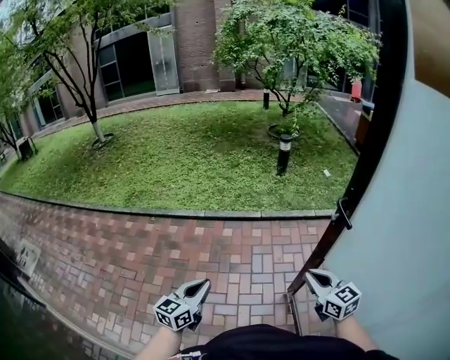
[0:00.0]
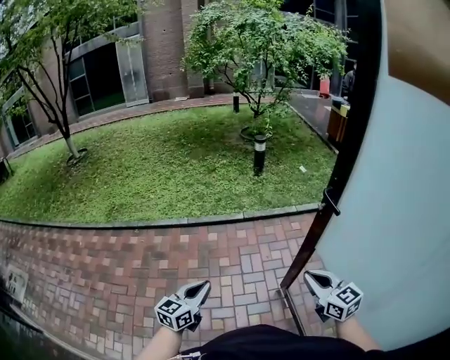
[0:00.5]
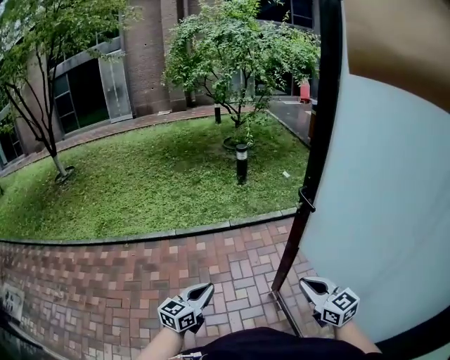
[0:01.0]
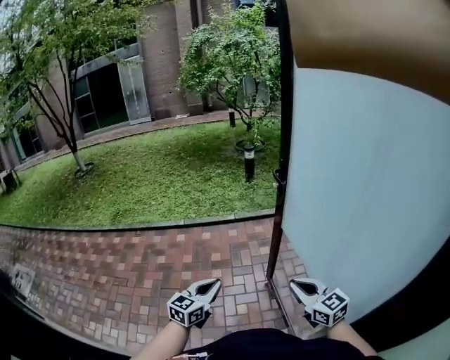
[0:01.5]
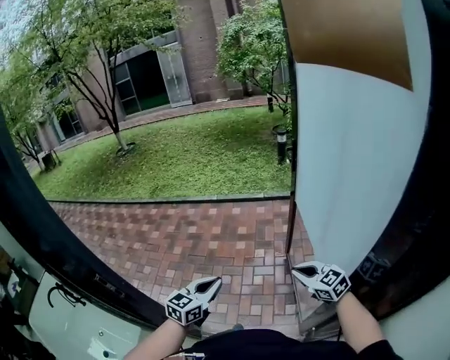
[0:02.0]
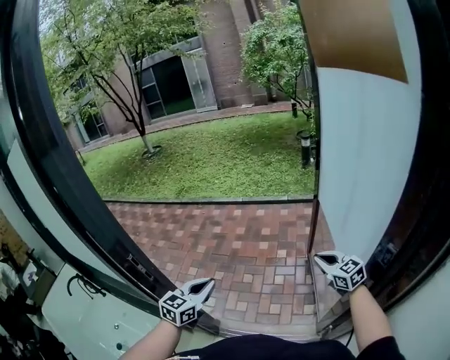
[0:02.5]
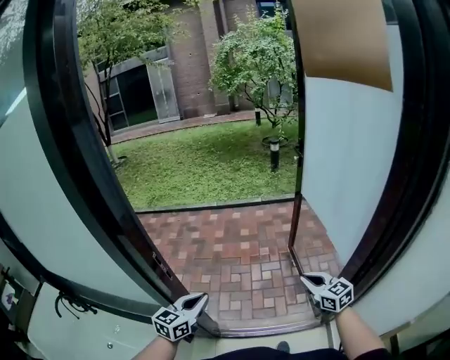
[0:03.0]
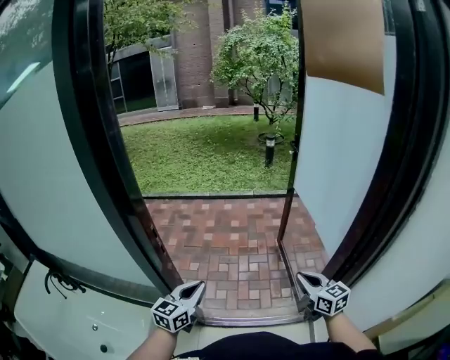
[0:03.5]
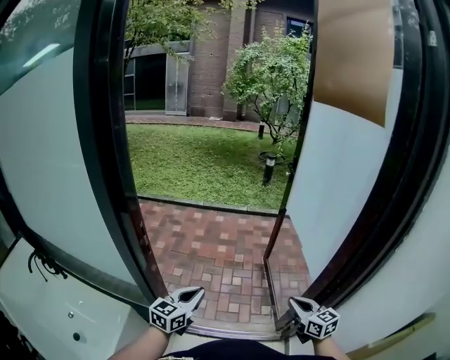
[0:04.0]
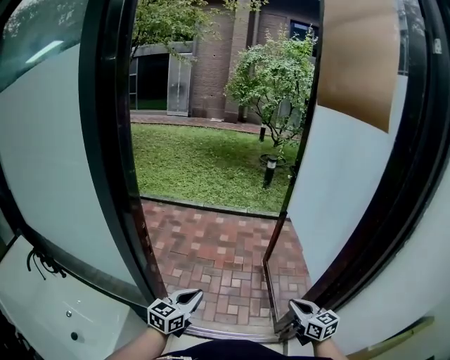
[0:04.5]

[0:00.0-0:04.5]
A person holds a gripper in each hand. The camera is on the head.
0:00.0 to 0:02.0: Both grippers are carried backward, approximately 50 cm. The right gripper swivels about 20 degrees.
0:02.0 to 0:04.5: The right gripper goes approximately 25 cm backward, and turns by some 20 degrees, while the left gripper shifts some 25 cm backward and to the left.

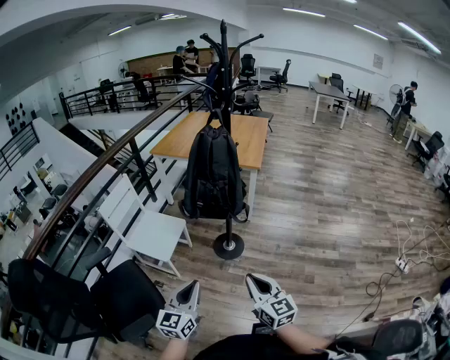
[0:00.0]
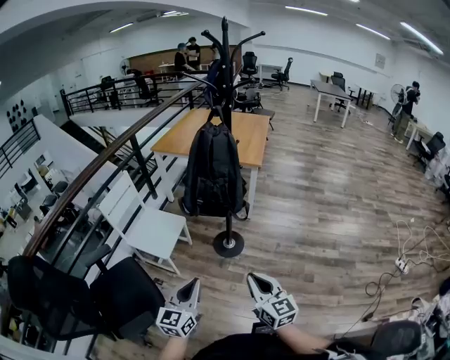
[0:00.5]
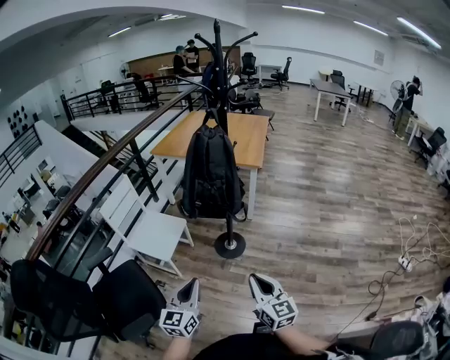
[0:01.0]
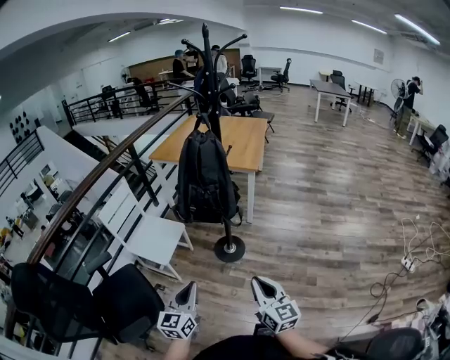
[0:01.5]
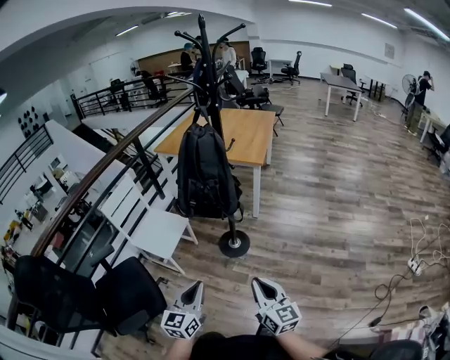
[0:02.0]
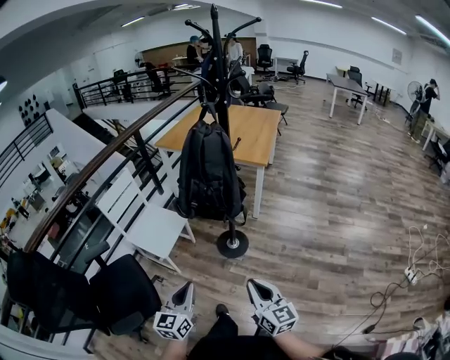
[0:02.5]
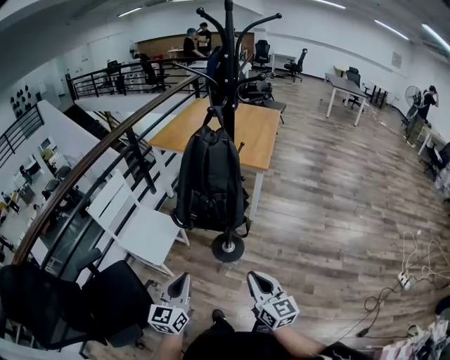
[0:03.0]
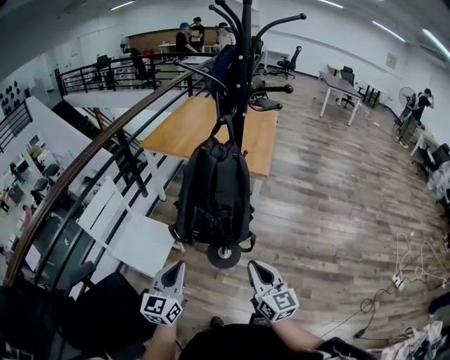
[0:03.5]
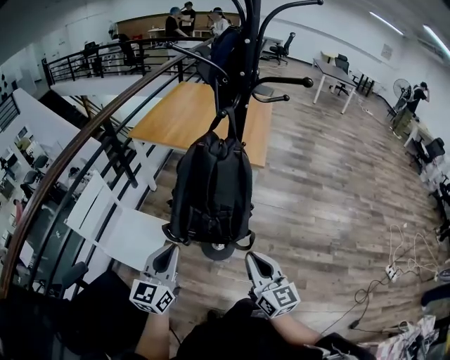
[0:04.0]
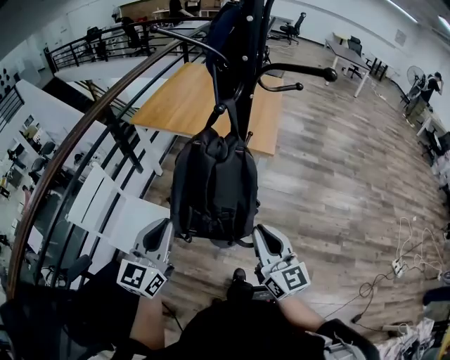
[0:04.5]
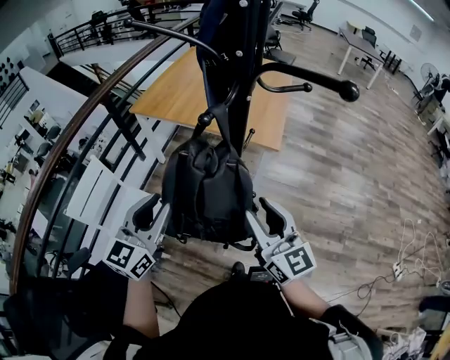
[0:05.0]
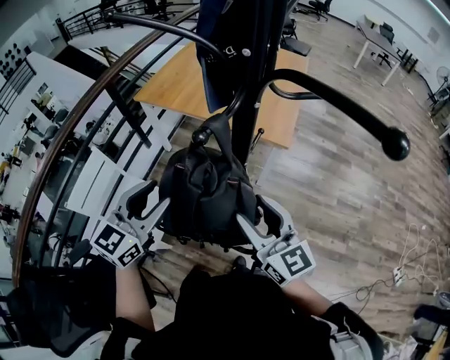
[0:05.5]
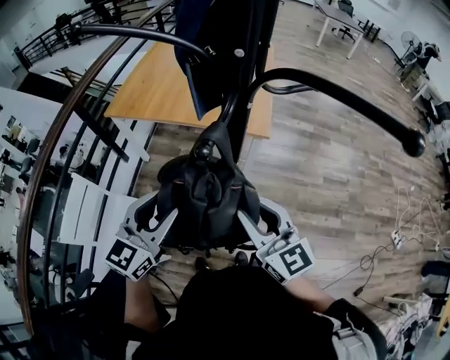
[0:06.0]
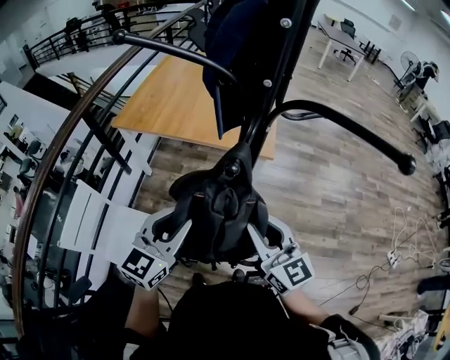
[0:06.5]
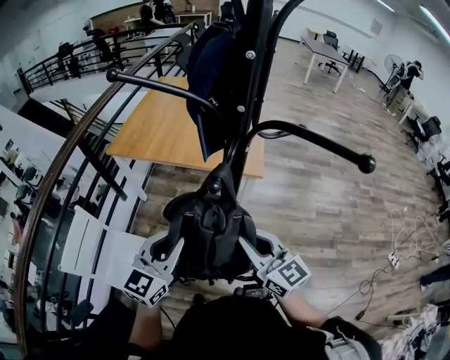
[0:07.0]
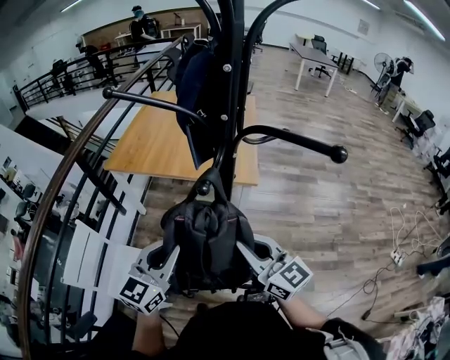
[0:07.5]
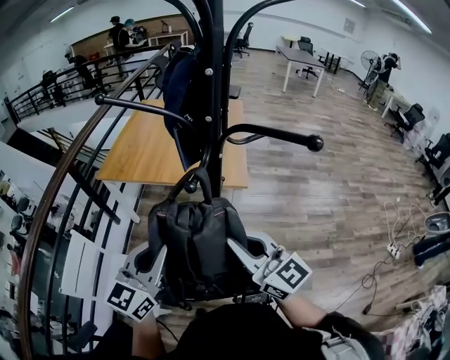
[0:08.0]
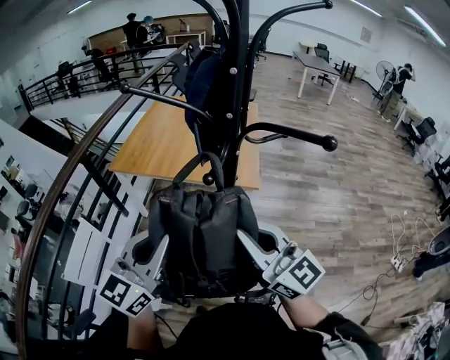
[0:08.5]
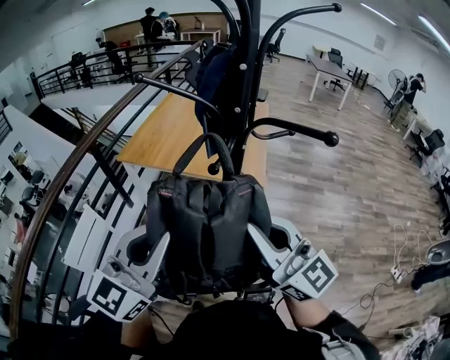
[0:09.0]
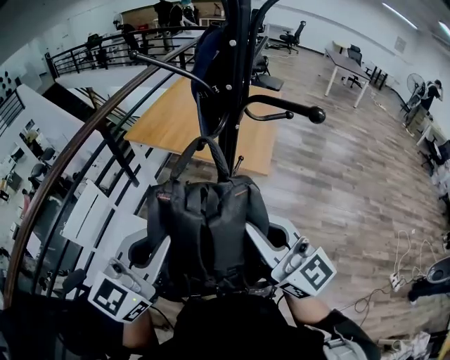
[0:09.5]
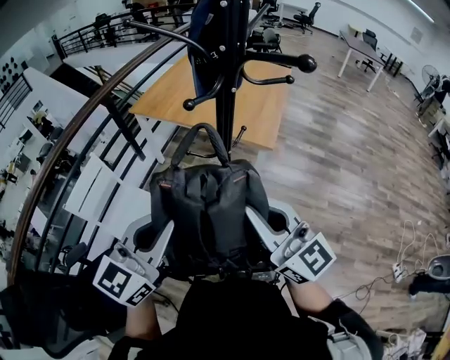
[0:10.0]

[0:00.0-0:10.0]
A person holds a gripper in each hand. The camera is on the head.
0:00.0 to 0:02.0: Both grippers travel together to the right, some 5 cm.
0:02.0 to 0:04.0: The grippers both shift forward by approximately 30 cm.
0:04.0 to 0:06.0: Both grippers travel together forward, some 20 cm. The right gripper opens up, while the left gripper turns by approximately 20 degrees, and opens.
0:06.0 to 0:08.0: Both grippers move upward, about 5 cm. The right gripper closes. Meanwhile the left gripper closes its fingers.
0:08.0 to 0:10.0: The left gripper travels backward by about 10 cm. Meanwhile the right gripper heads backward, covering about 5 cm, and reaches some 10 cm upward, then returns.

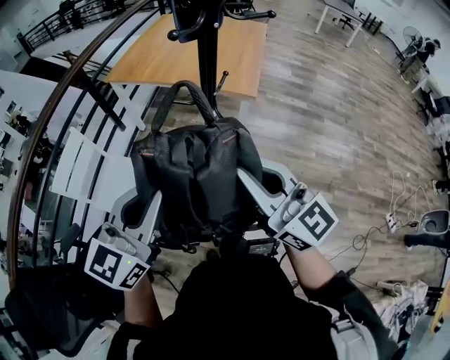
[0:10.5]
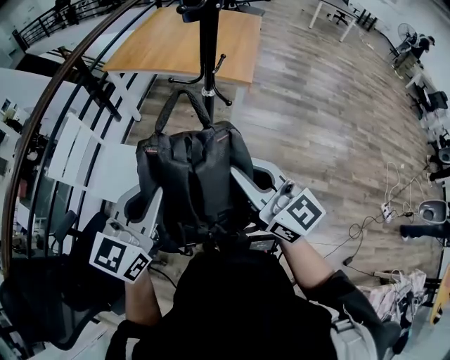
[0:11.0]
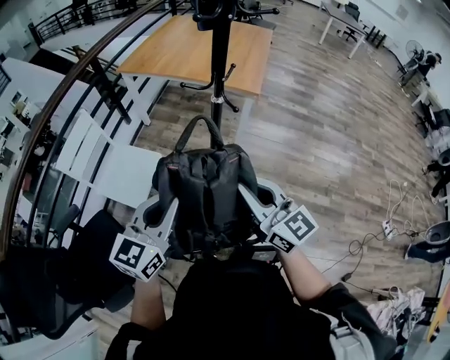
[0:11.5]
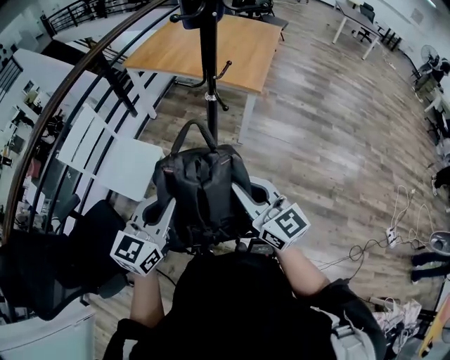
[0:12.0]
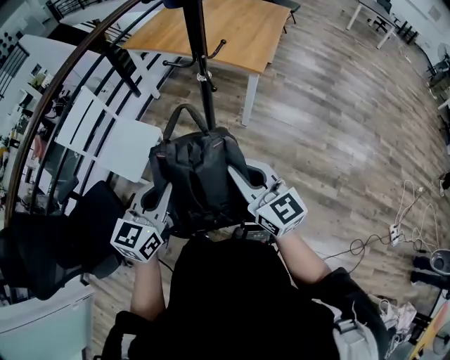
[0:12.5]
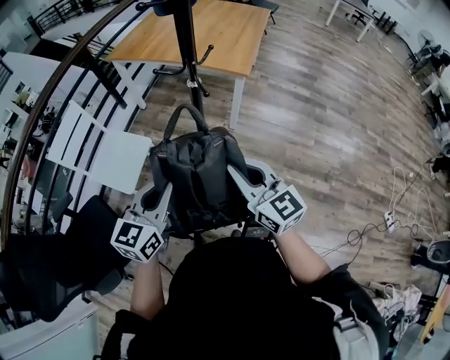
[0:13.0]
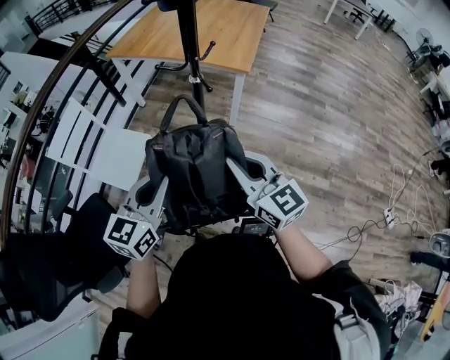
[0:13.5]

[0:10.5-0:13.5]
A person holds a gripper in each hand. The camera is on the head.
0:10.5 to 0:12.0: Both grippers move downward and backward, some 15 cm.
0:12.0 to 0:13.5: There are only small adjustments of the grippers.

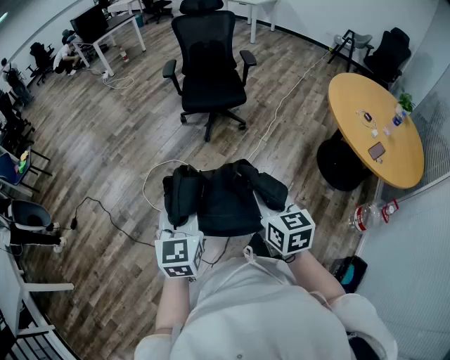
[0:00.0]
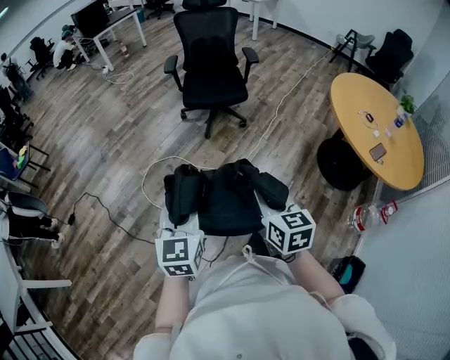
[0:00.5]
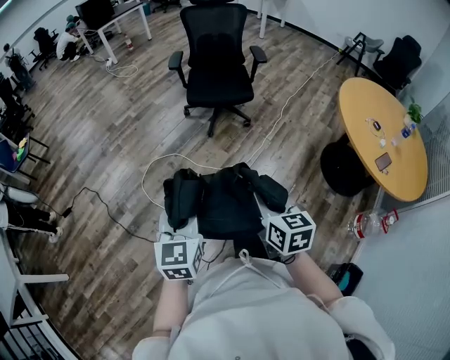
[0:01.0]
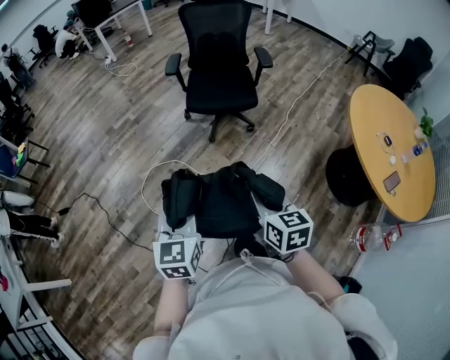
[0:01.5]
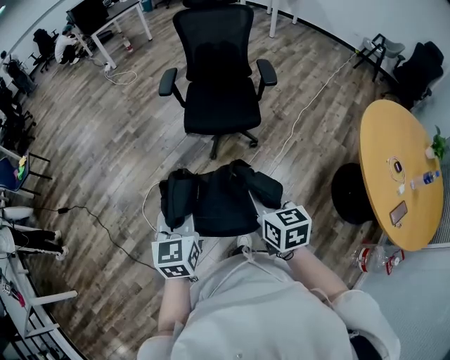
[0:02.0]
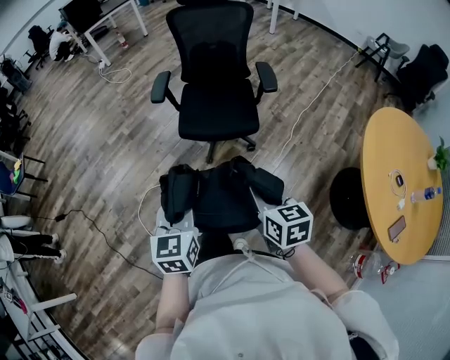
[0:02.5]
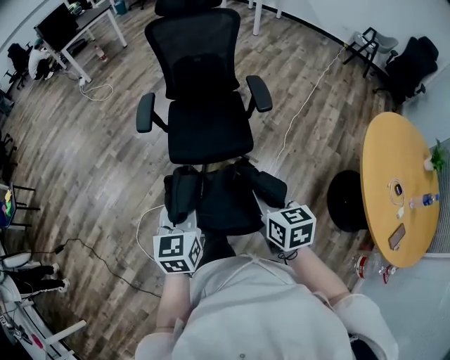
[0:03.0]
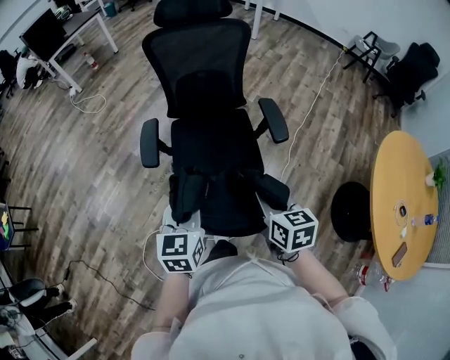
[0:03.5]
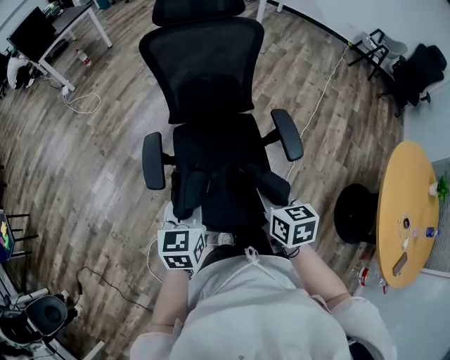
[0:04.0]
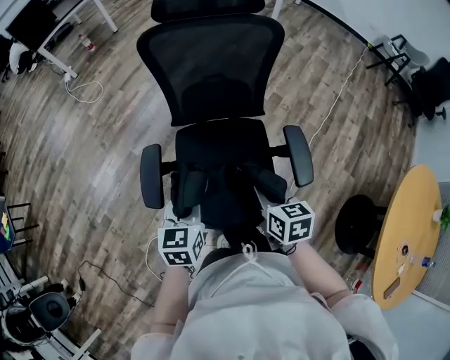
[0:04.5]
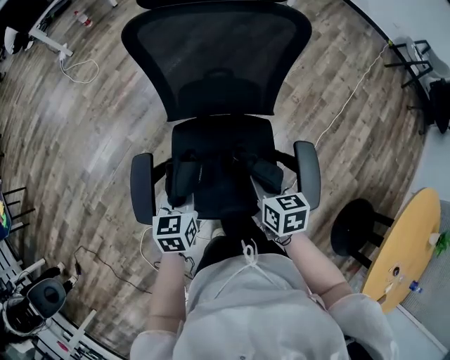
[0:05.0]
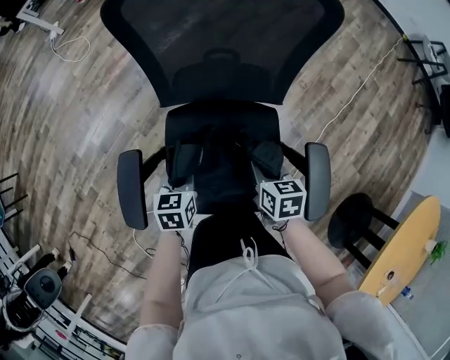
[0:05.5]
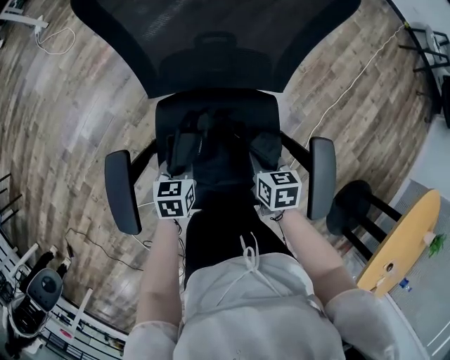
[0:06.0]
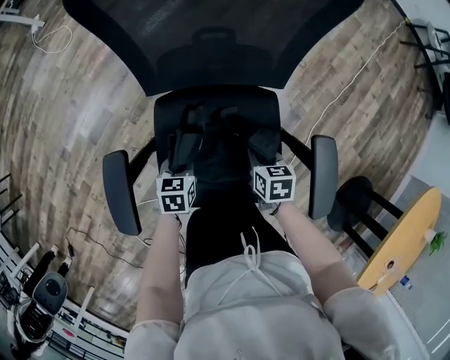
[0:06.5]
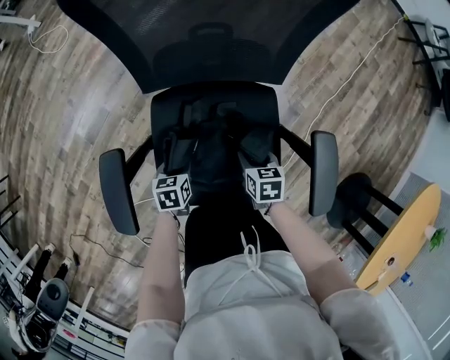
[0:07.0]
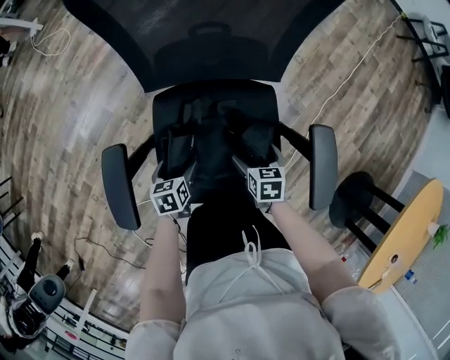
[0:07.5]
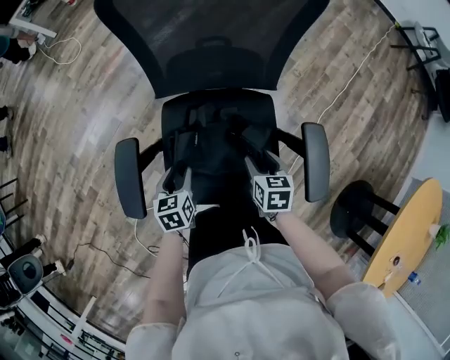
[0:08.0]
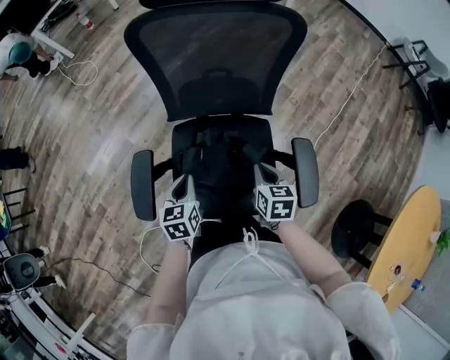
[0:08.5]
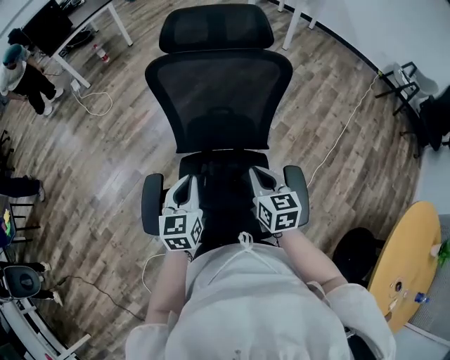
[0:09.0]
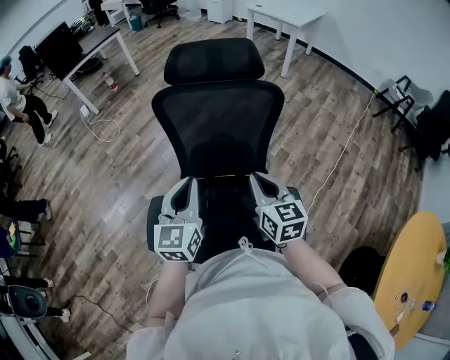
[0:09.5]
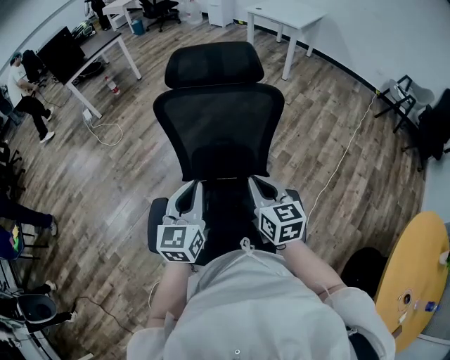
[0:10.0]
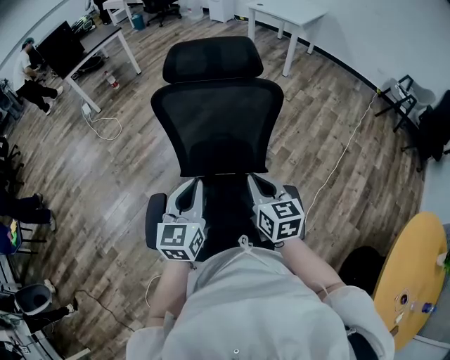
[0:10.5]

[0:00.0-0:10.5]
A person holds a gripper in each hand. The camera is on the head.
0:00.0 to 0:02.0: Both grippers travel together forward, about 35 cm.
0:02.0 to 0:04.0: Both grippers are carried forward, about 60 cm.
0:04.0 to 0:06.5: Both grippers move downward and forward, approximately 50 cm. The left gripper changes its angle by roughly 30 degrees. The right gripper turns by some 20 degrees.
0:06.5 to 0:08.5: Both grippers travel together upward, approximately 20 cm. The left gripper opens, then closes again; the right gripper opens, then closes once more.
0:08.5 to 0:10.5: The grippers both shift upward by about 25 cm. The left gripper tips its fingers upward by approximately 30 degrees. The right gripper swivels roughly 30 degrees.
